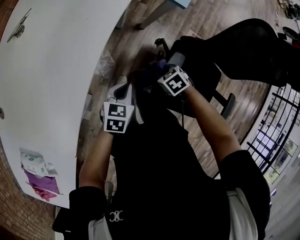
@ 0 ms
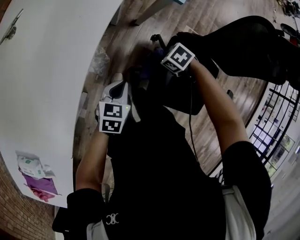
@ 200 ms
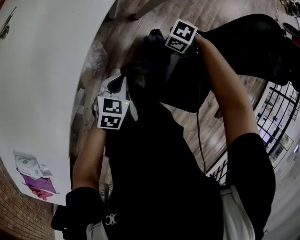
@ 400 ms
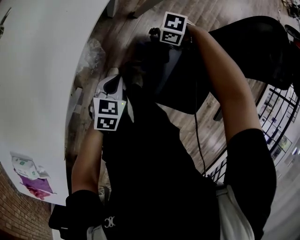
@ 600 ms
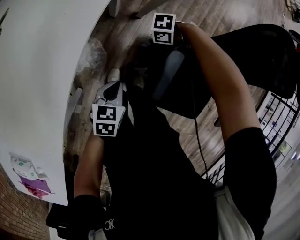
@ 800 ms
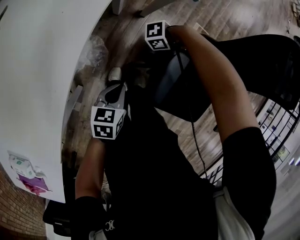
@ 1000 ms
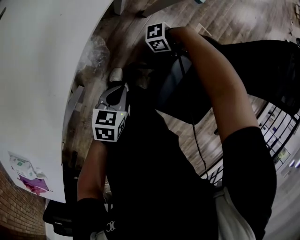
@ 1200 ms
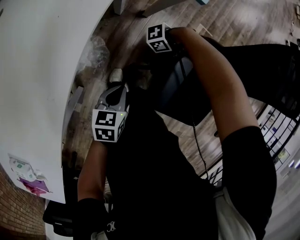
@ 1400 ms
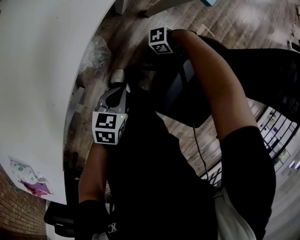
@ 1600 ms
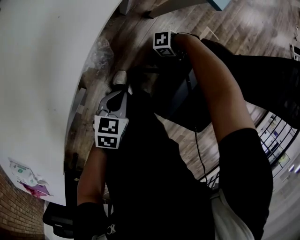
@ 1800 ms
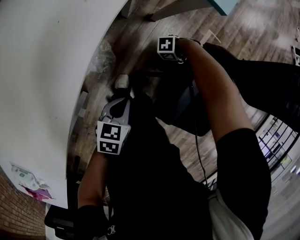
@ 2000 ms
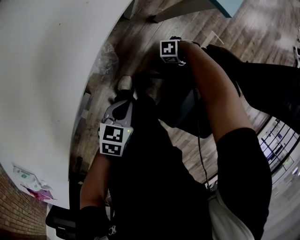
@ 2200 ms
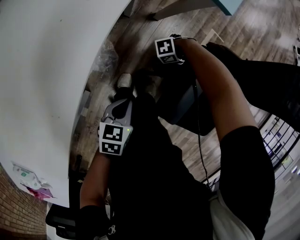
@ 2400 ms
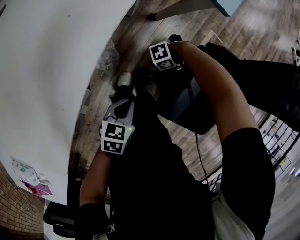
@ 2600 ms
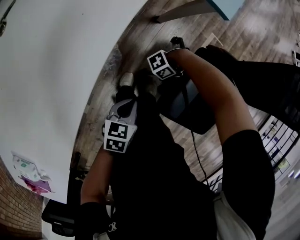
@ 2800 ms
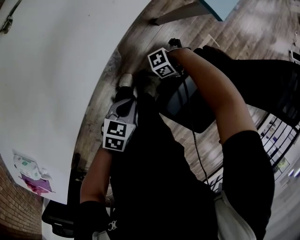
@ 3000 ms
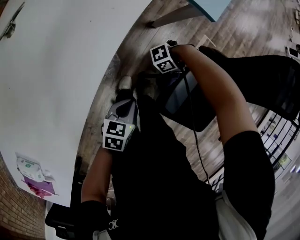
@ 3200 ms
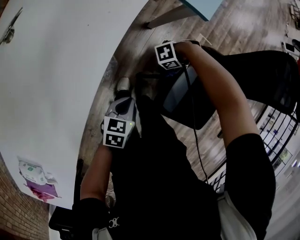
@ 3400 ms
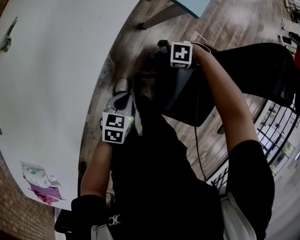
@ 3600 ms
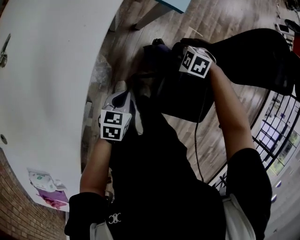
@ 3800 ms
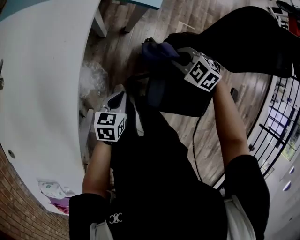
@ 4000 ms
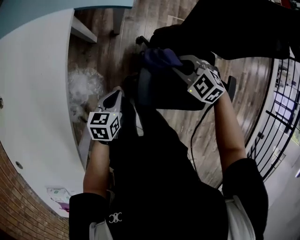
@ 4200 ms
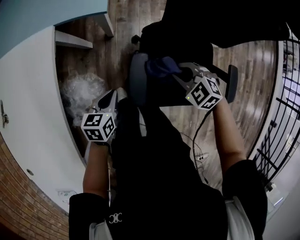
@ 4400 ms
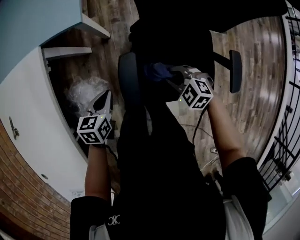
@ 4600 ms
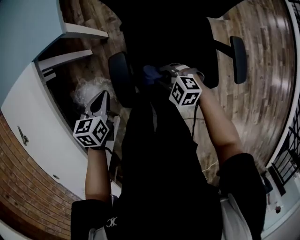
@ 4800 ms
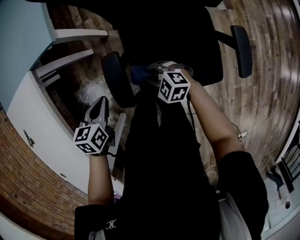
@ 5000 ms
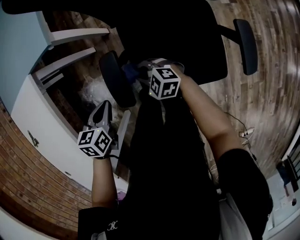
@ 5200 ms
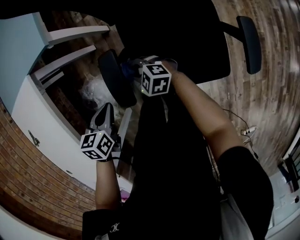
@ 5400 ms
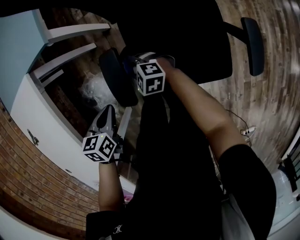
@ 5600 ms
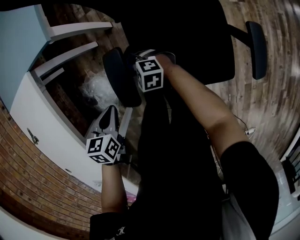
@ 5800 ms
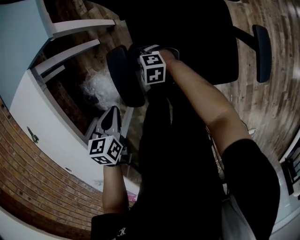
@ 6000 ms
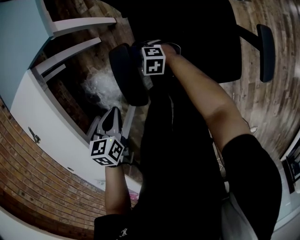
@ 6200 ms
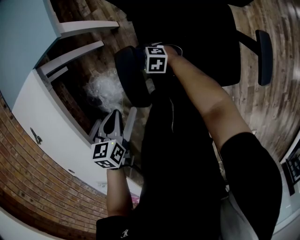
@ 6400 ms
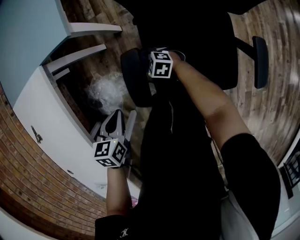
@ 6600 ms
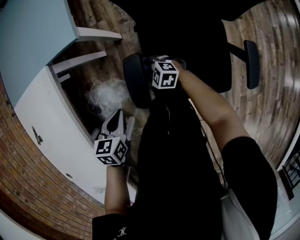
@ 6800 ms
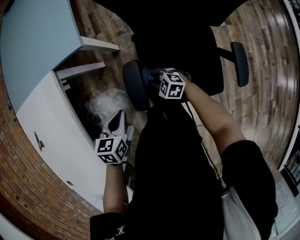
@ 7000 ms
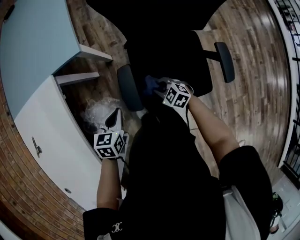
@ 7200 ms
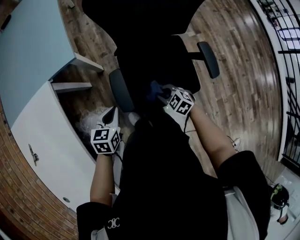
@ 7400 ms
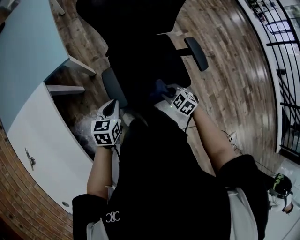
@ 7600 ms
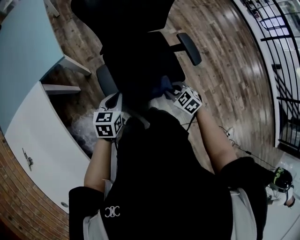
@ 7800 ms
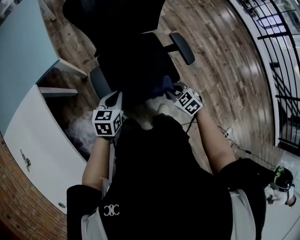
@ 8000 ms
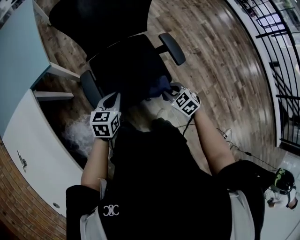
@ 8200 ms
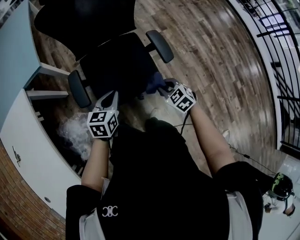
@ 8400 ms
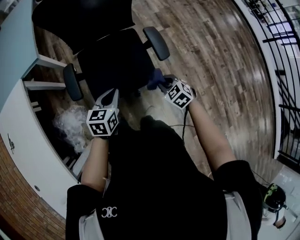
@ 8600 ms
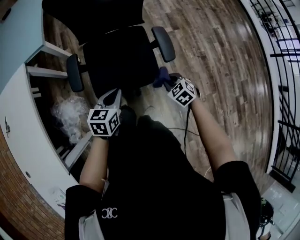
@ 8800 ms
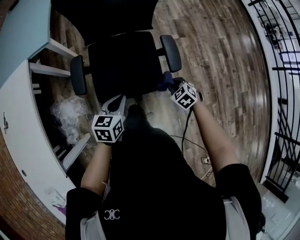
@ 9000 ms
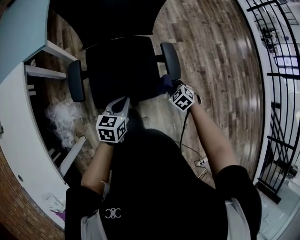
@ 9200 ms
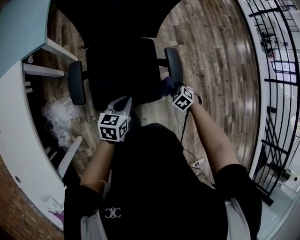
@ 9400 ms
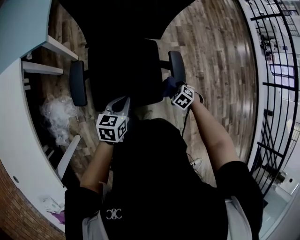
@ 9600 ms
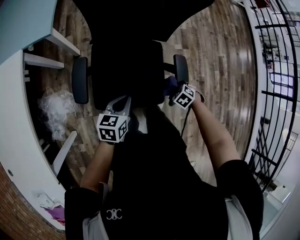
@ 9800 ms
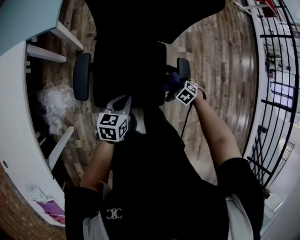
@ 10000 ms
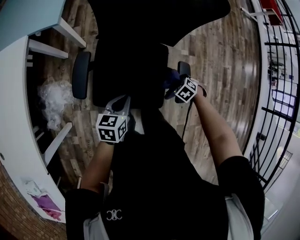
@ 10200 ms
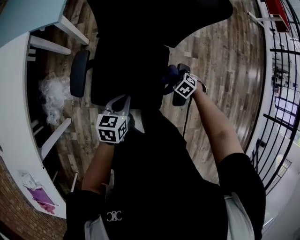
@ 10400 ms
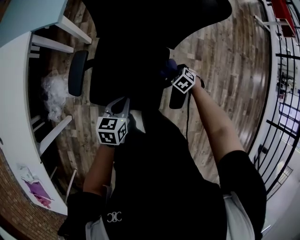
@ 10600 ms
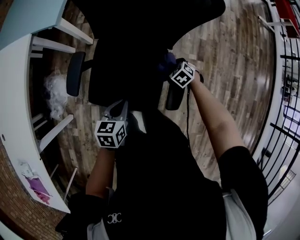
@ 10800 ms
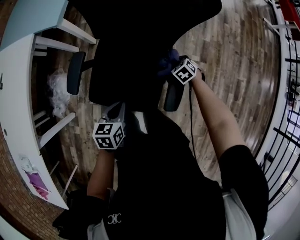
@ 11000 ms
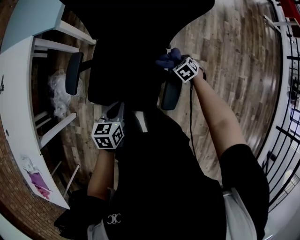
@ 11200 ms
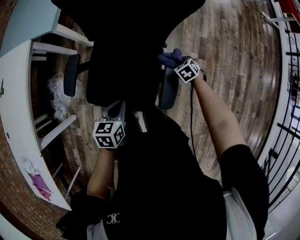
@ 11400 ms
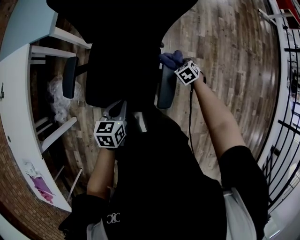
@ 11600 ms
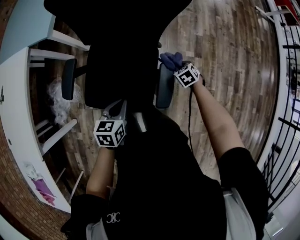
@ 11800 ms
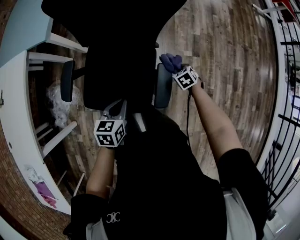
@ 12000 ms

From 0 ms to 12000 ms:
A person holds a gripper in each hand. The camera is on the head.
From 0 ms to 1600 ms: The right gripper moves downward, approximately 15 cm, and tilts its fingers some 40 degrees upward. Meanwhile the left gripper shifts approximately 10 cm downward.
From 1600 ms to 3000 ms: The right gripper shifts approximately 10 cm to the right, travels downward and back again, approximately 10 cm each way, and turns by some 20 degrees.
From 3000 ms to 4400 ms: The right gripper moves upward, some 20 cm, and tips its fingers downward by approximately 30 degrees, while the left gripper changes place by roughly 15 cm.
From 4400 ms to 6000 ms: The right gripper is displaced downward and to the left by approximately 20 cm. Meanwhile the left gripper heads backward, covering approximately 5 cm.
From 6000 ms to 7600 ms: The left gripper moves upward, approximately 10 cm, and swivels roughly 30 degrees. Meanwhile the right gripper shifts by approximately 30 cm, and changes its angle by about 40 degrees.
From 7600 ms to 9000 ms: Both grippers travel together to the right, some 25 cm.
From 9000 ms to 10400 ms: The right gripper shifts by roughly 25 cm, and rotates roughly 30 degrees. Meanwhile the left gripper shifts by roughly 10 cm.
From 10400 ms to 12000 ms: The right gripper changes place by roughly 15 cm, and changes its angle by approximately 30 degrees. The left gripper moves about 10 cm.

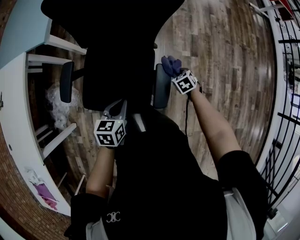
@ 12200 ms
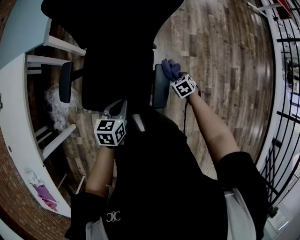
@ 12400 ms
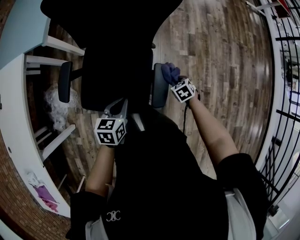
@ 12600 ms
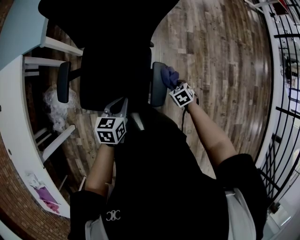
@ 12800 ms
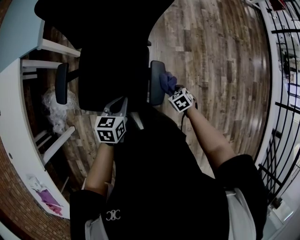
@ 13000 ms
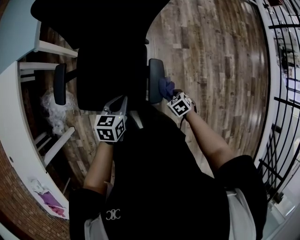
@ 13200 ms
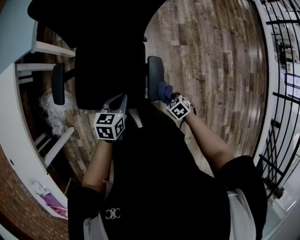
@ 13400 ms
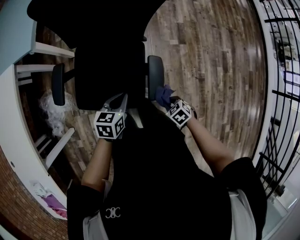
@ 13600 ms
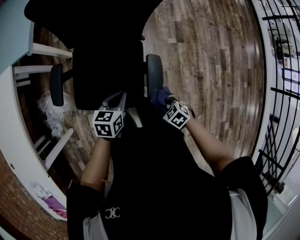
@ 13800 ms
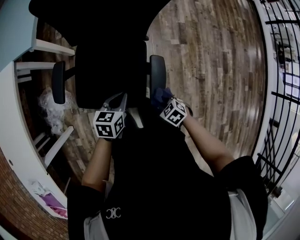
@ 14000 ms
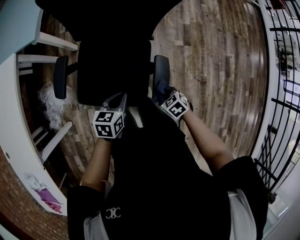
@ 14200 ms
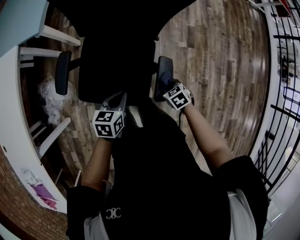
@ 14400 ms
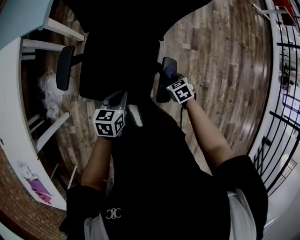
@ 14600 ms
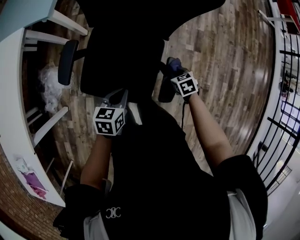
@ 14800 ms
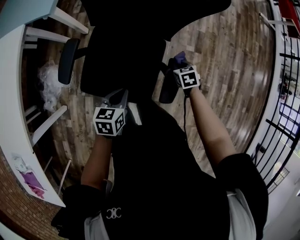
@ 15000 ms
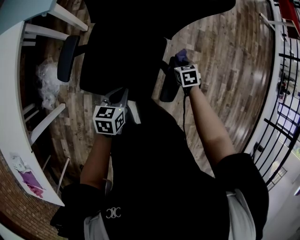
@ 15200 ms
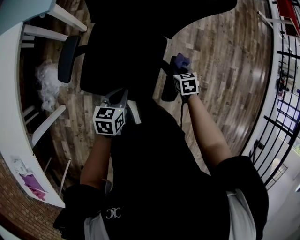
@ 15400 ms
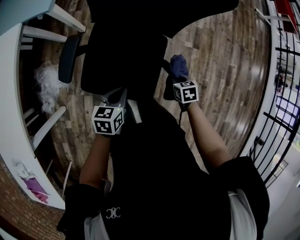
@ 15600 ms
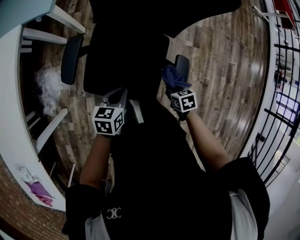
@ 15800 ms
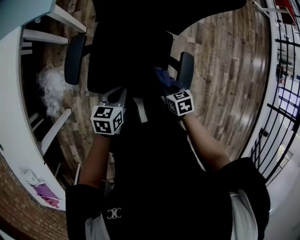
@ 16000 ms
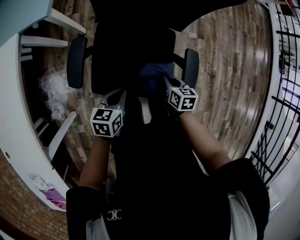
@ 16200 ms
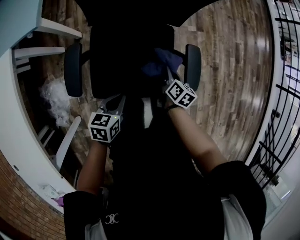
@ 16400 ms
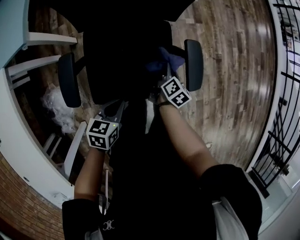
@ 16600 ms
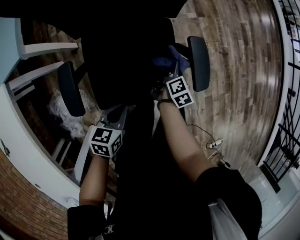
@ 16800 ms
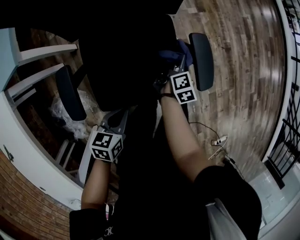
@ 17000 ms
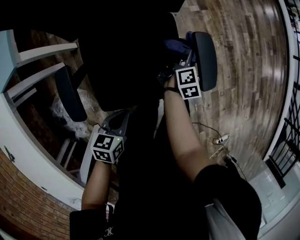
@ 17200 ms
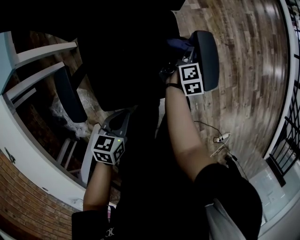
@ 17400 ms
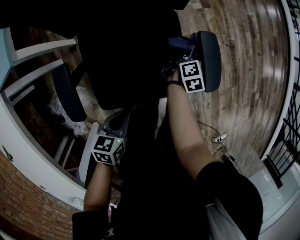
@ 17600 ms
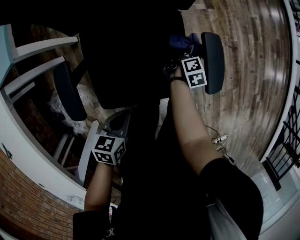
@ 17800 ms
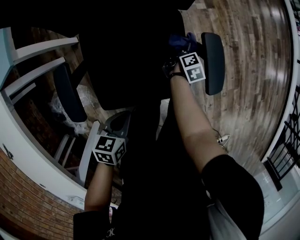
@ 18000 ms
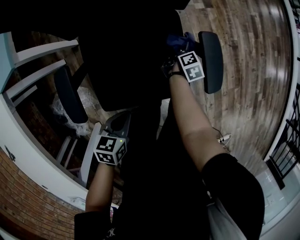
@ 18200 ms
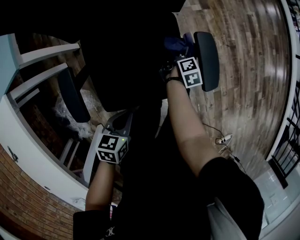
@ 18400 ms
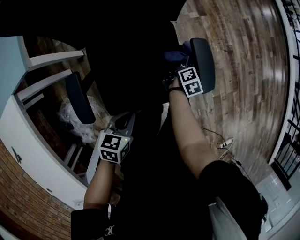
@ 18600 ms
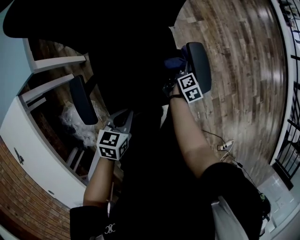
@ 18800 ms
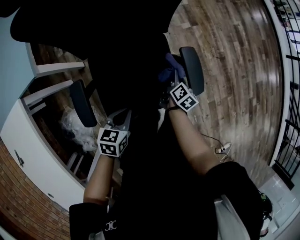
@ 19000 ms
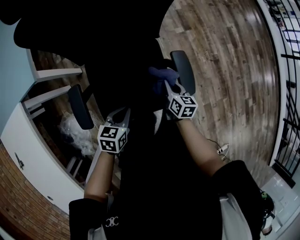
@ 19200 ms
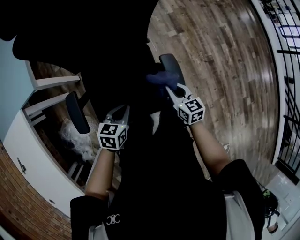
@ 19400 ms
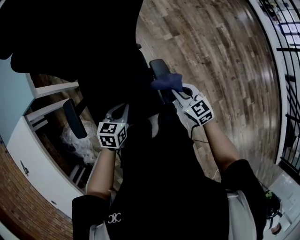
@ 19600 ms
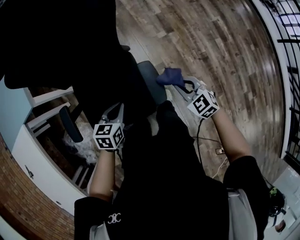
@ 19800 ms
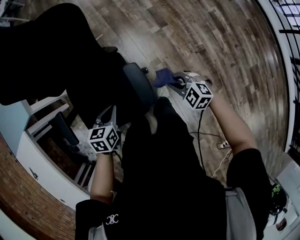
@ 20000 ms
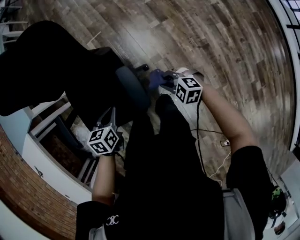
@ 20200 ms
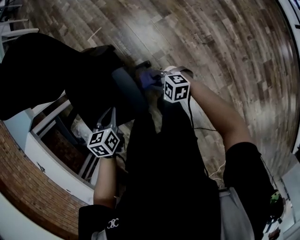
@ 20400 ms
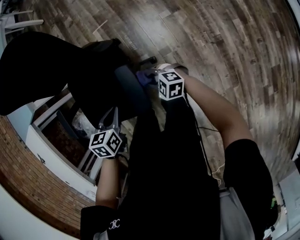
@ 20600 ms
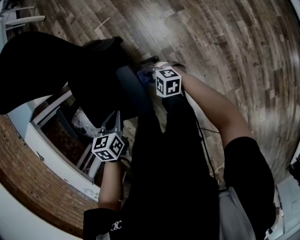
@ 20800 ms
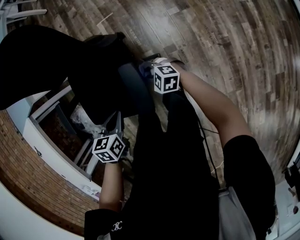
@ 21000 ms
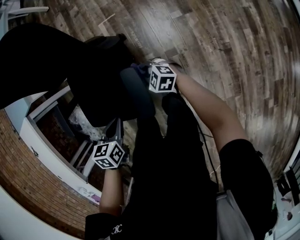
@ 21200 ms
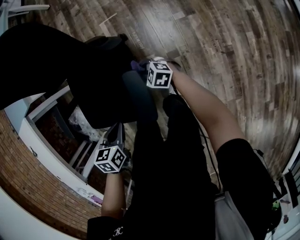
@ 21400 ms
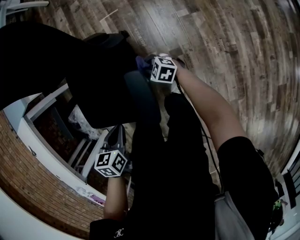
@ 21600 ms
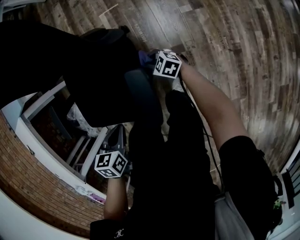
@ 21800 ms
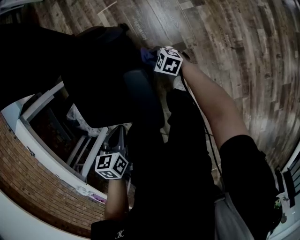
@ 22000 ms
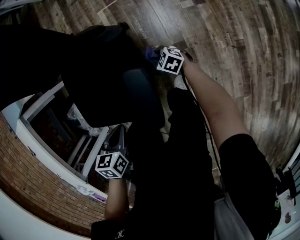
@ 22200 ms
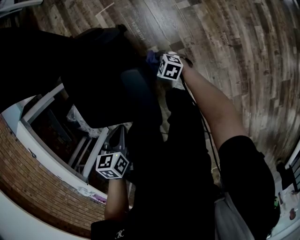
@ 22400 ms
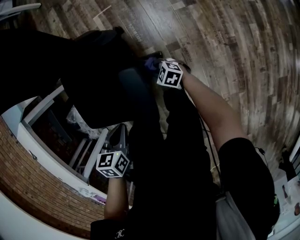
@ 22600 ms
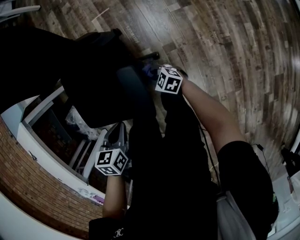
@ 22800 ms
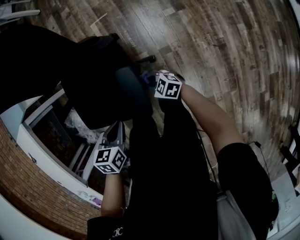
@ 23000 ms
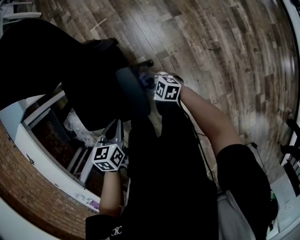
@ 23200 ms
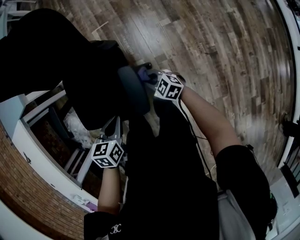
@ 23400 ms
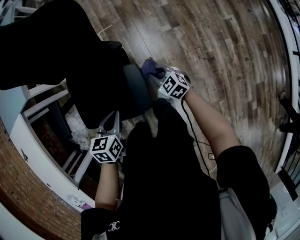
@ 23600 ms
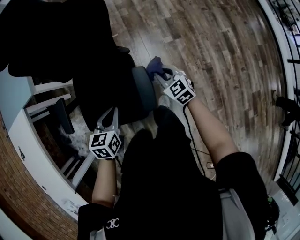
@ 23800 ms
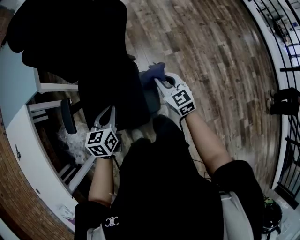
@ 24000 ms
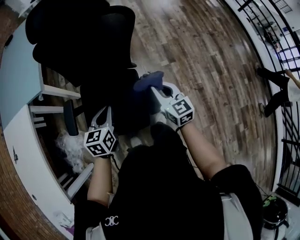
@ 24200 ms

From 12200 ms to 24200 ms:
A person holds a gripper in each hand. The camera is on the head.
From 12200 ms to 13800 ms: The right gripper changes place by approximately 25 cm.
From 13800 ms to 15200 ms: The right gripper moves forward, about 25 cm, and turns by some 20 degrees. The left gripper heads to the left, covering roughly 5 cm.
From 15200 ms to 16600 ms: The right gripper ends up about 15 cm from where it was, and rotates around the line of its fingers by some 80 degrees, clockwise from behind, while the left gripper shifts by roughly 15 cm, and turns by approximately 30 degrees.
From 16600 ms to 18200 ms: The right gripper travels downward and forward by approximately 15 cm, and rotates some 20 degrees. Meanwhile the left gripper shifts some 5 cm downward.
From 18200 ms to 19800 ms: The left gripper ends up some 25 cm from where it was; the right gripper goes approximately 25 cm upward, and rotates around the line of its fingers by about 90 degrees, counterclockwise from behind.
From 19800 ms to 21200 ms: The left gripper moves approximately 10 cm, and rotates some 30 degrees, while the right gripper travels downward by some 20 cm, and turns by some 30 degrees.
From 21200 ms to 22600 ms: The right gripper shifts about 15 cm downward.
From 22600 ms to 24200 ms: The left gripper goes roughly 20 cm upward and to the left, and angles its fingers upward, by roughly 30 degrees, while the right gripper goes some 50 cm upward, and turns by about 50 degrees.
